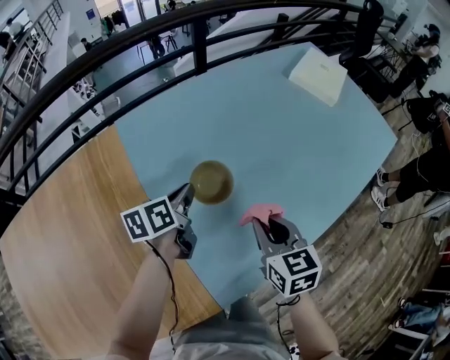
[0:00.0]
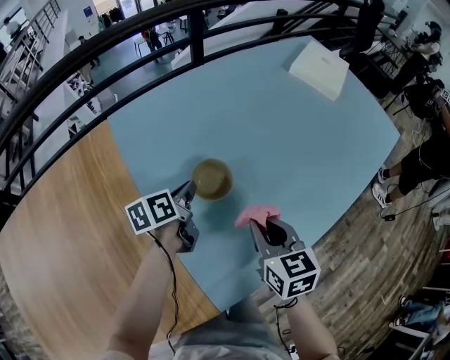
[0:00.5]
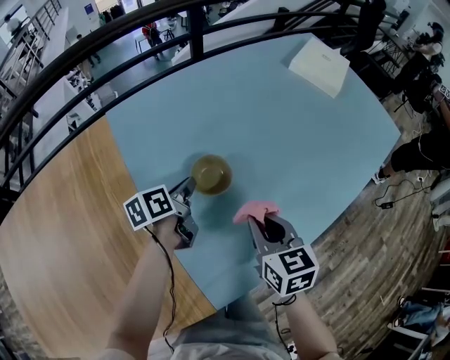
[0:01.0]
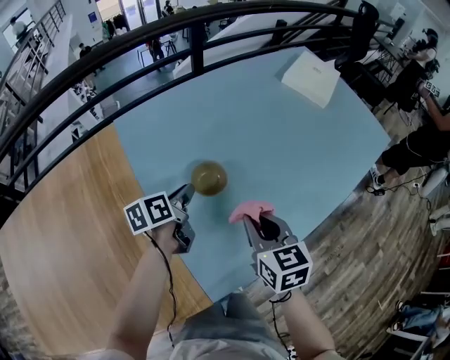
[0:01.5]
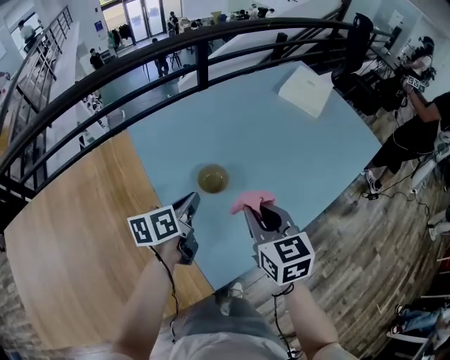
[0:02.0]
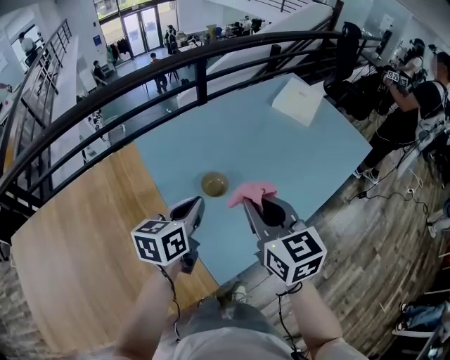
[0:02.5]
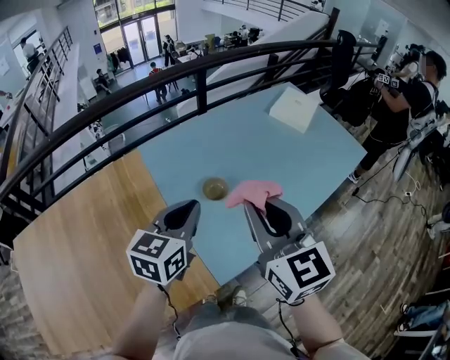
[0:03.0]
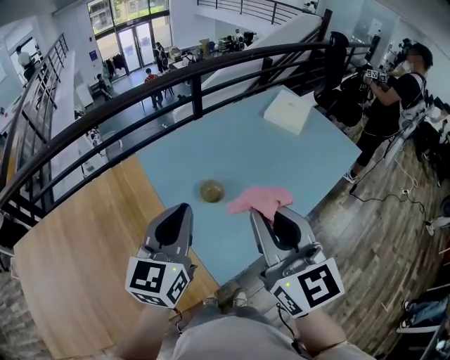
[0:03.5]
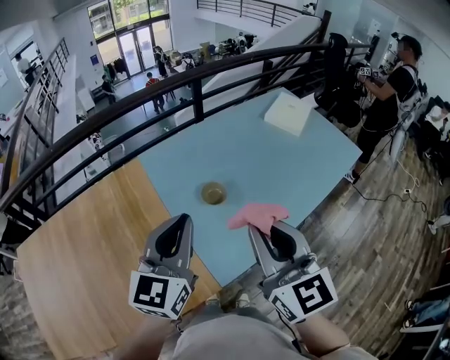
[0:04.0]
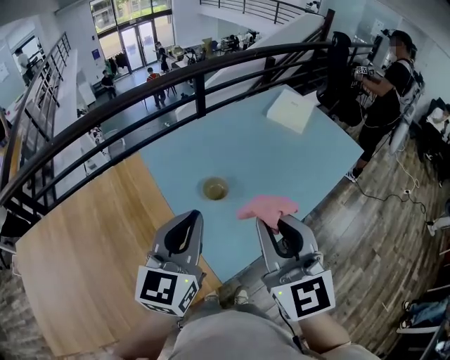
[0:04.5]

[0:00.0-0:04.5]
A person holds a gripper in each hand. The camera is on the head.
0:00.0 to 0:02.0: The grippers both shift upward and backward by roughly 15 cm.
0:02.0 to 0:04.5: The grippers both shift upward and backward by roughly 30 cm. The left gripper twists roughly 40 degrees clockwise, seen from behind, while the right gripper changes its angle by about 30 degrees.

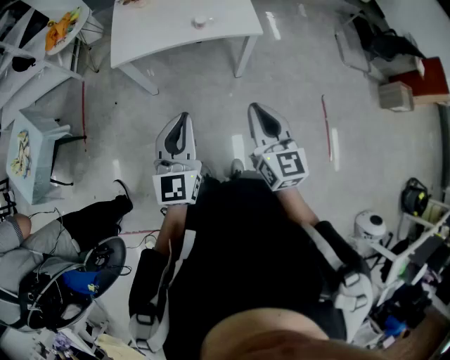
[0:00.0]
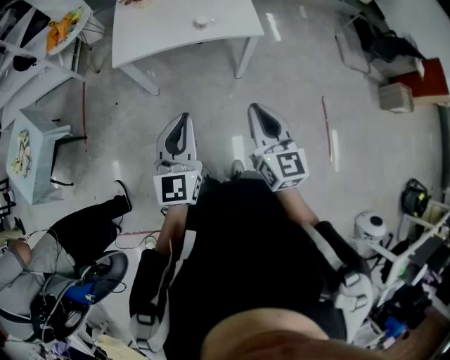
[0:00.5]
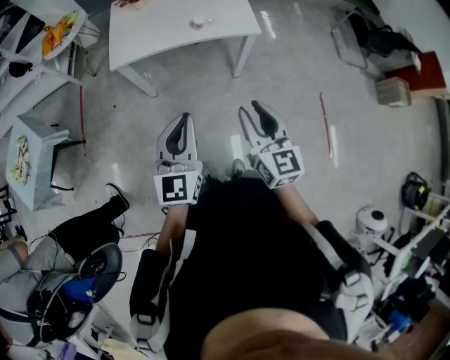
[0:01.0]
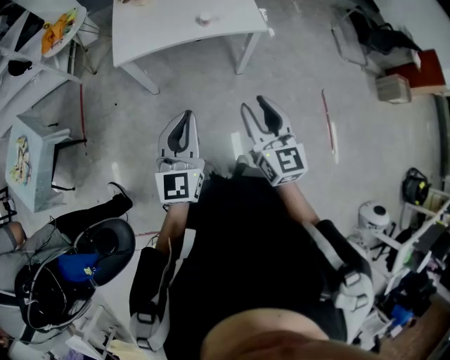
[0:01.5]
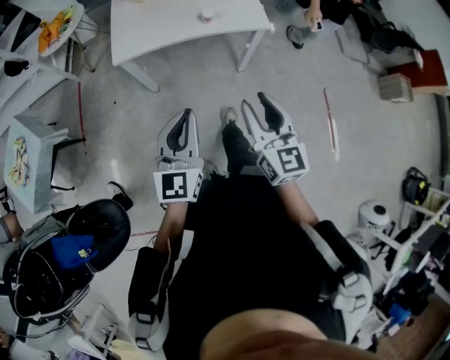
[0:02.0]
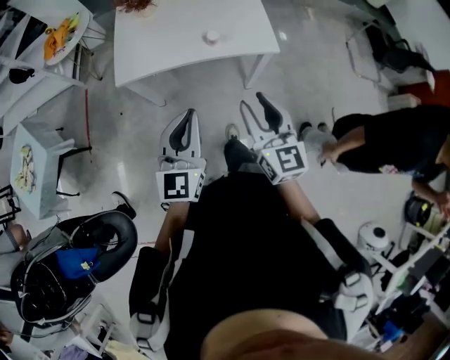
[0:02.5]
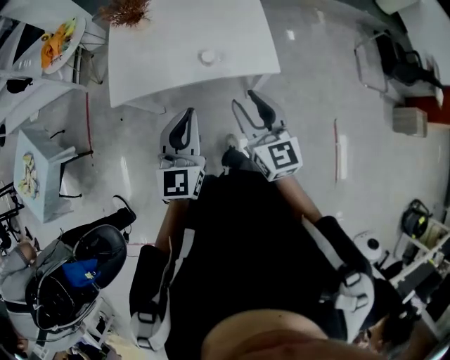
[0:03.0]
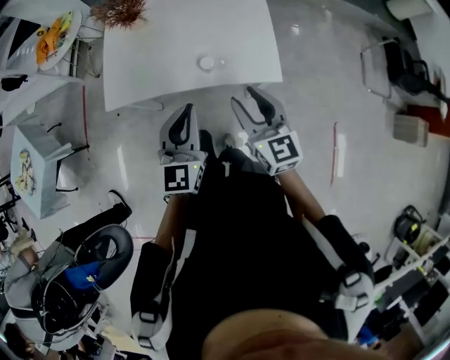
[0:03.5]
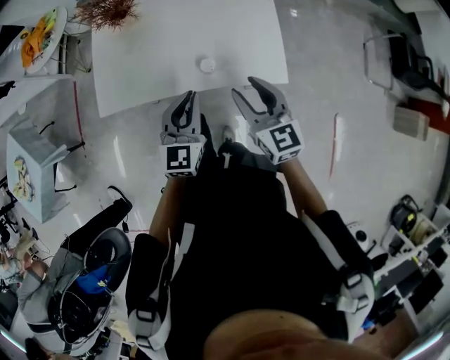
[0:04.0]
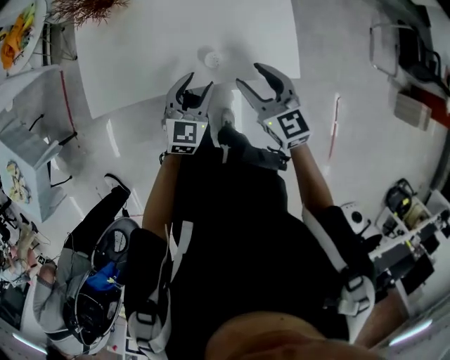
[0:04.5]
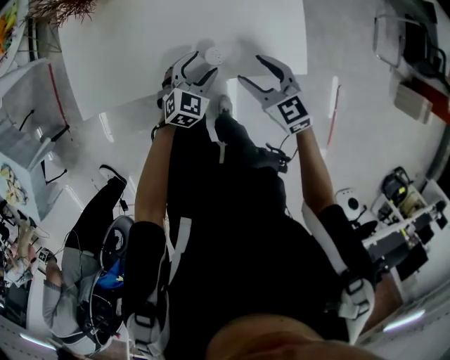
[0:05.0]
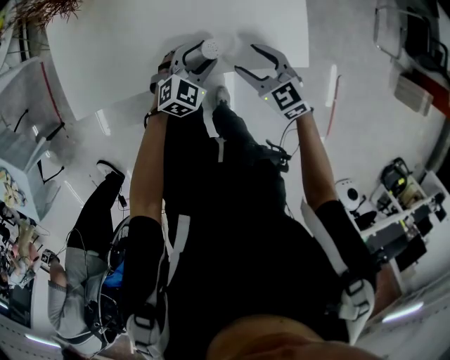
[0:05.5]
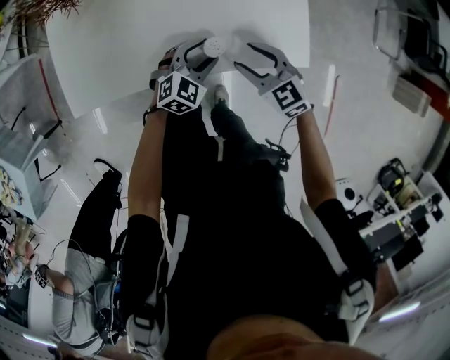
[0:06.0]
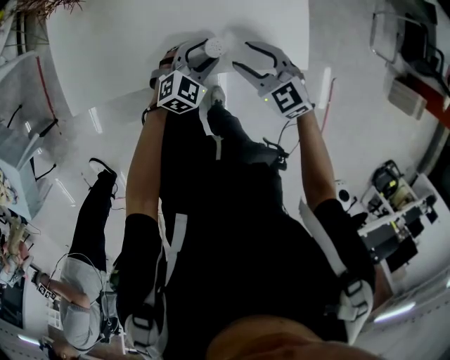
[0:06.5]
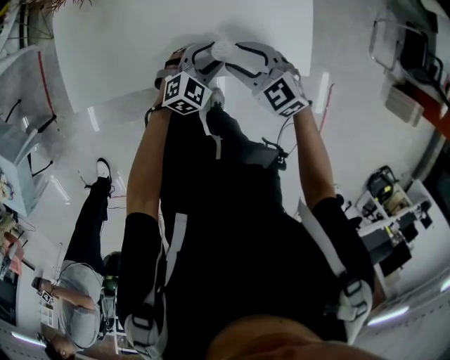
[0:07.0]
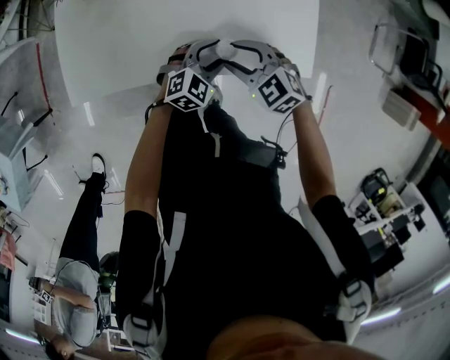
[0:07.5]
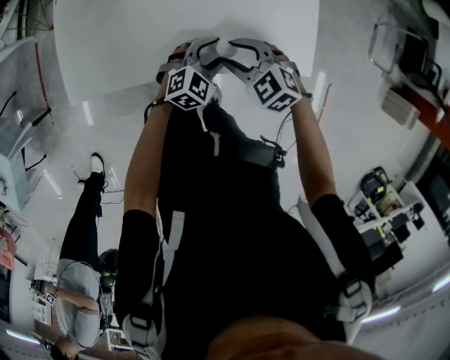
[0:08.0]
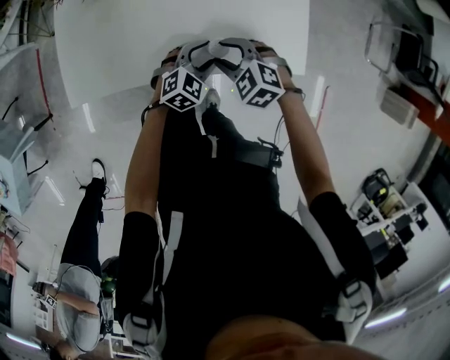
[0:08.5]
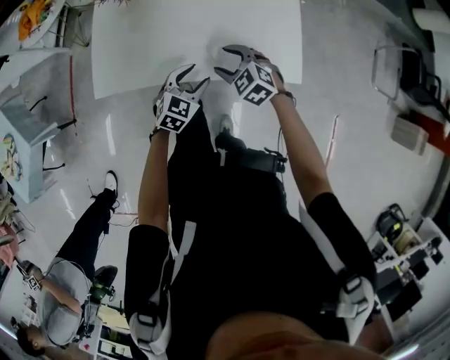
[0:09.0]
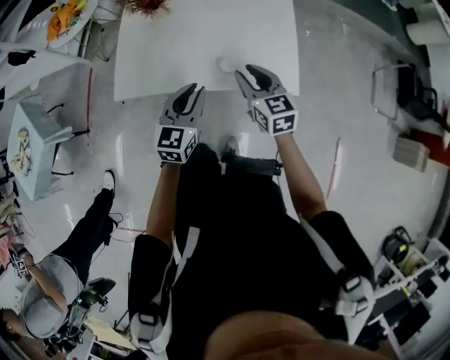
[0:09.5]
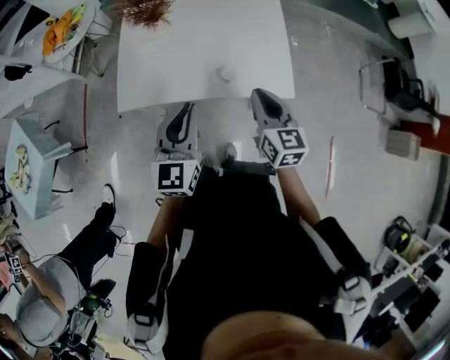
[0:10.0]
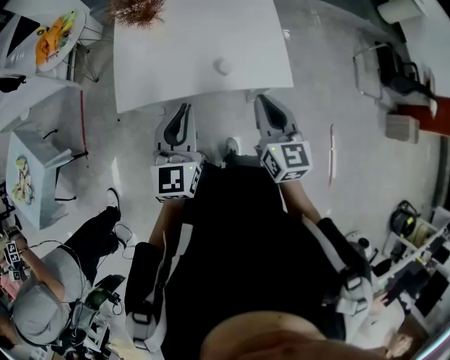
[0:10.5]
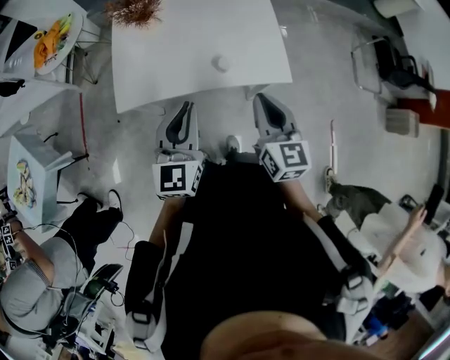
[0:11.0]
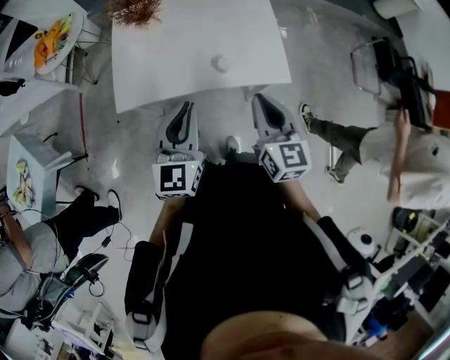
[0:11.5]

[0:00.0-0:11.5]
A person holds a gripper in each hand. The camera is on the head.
0:00.0 to 0:02.0: The two grippers go roughly 5 cm to the left. The right gripper opens up.
0:02.0 to 0:04.0: Both grippers are carried forward, some 40 cm.
0:04.0 to 0:06.0: The right gripper heads downward, covering about 20 cm, and changes its angle by about 30 degrees, while the left gripper moves downward and forward, roughly 25 cm, changes its angle by roughly 50 degrees, and opens up.
0:06.0 to 0:07.5: The right gripper moves to the left, about 5 cm.
0:07.5 to 0:09.5: The right gripper shifts approximately 15 cm upward and to the right, and swivels some 40 degrees. The left gripper heads upward and backward, covering approximately 25 cm, rotates approximately 40 degrees, and closes its fingers.
0:09.5 to 0:11.5: The right gripper moves backward and upward, approximately 20 cm, turns by approximately 20 degrees, and closes up. Meanwhile the left gripper goes approximately 15 cm upward, backward and to the left.

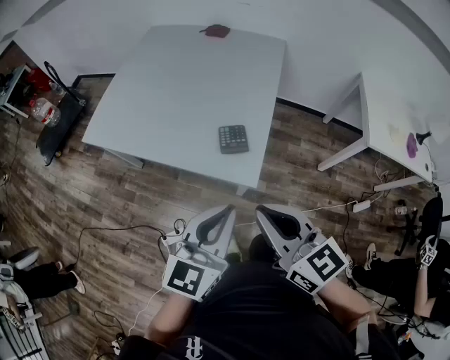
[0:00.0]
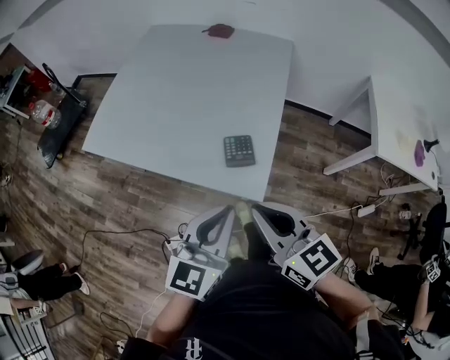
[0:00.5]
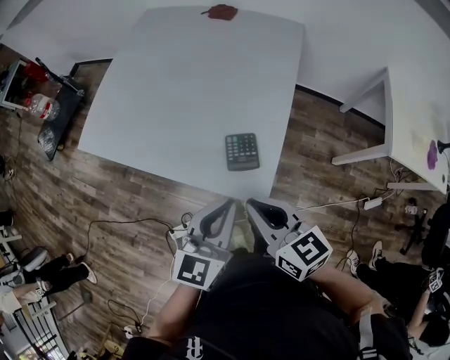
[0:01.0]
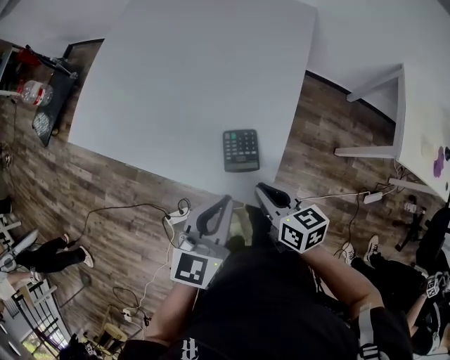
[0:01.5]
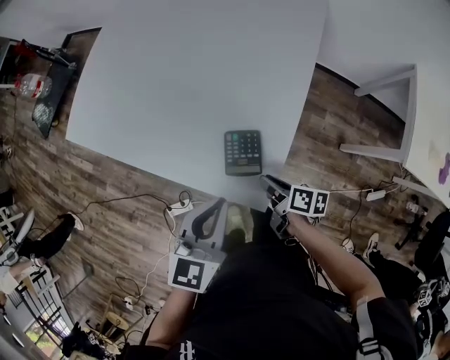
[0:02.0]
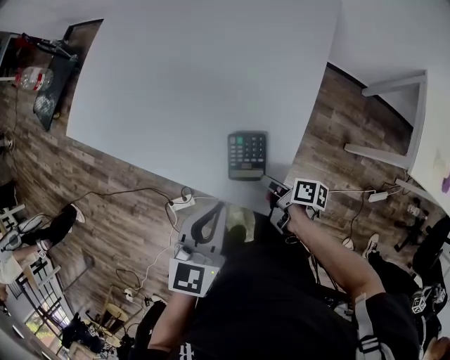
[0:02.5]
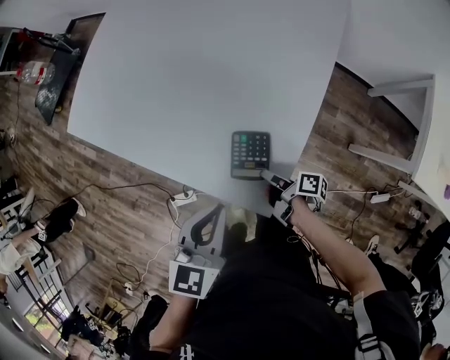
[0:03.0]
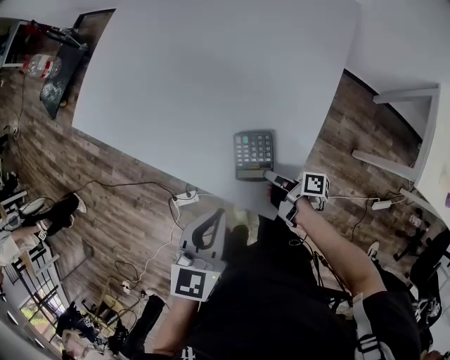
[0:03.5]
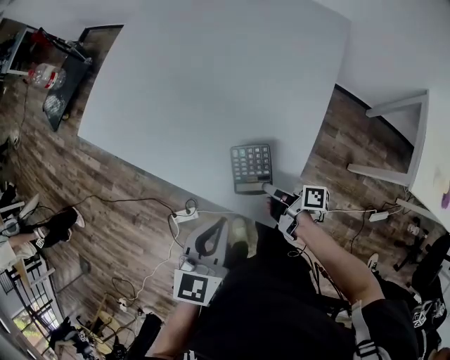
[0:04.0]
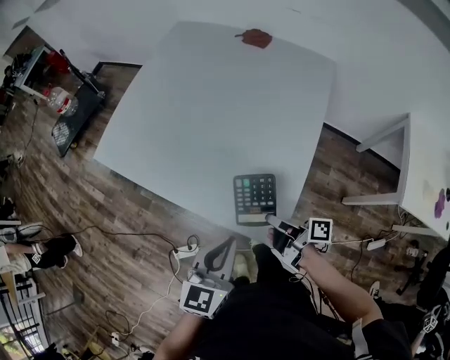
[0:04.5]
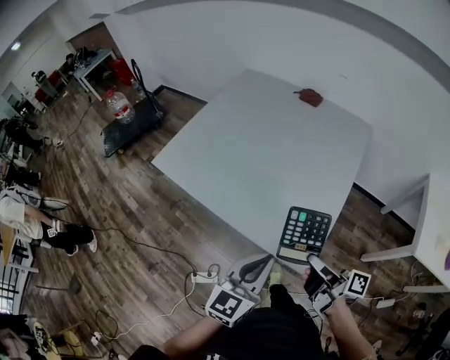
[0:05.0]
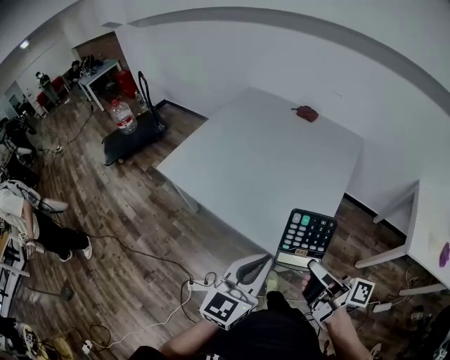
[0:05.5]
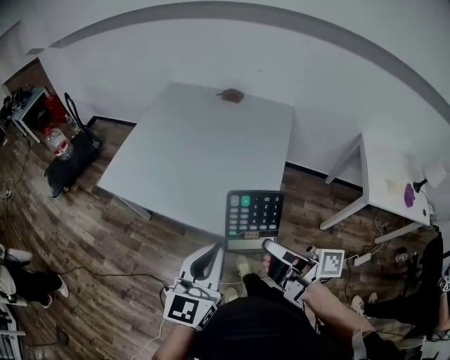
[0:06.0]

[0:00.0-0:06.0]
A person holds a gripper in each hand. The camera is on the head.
0:00.0 to 0:02.0: The left gripper moves roughly 20 cm.
0:04.0 to 0:06.0: The left gripper is displaced upward by some 15 cm, and rotates about 30 degrees.

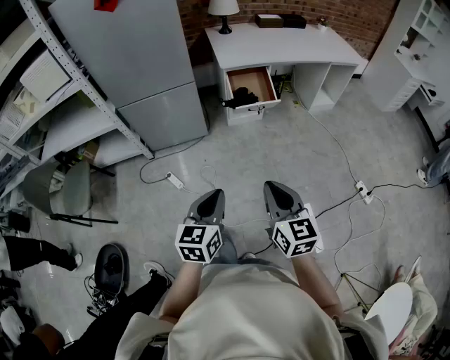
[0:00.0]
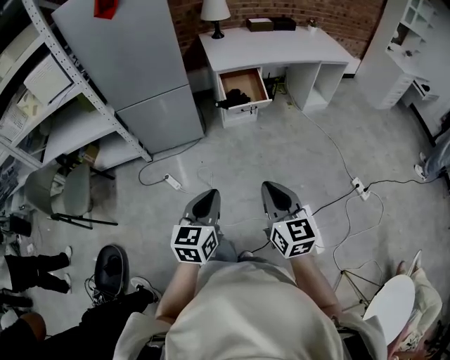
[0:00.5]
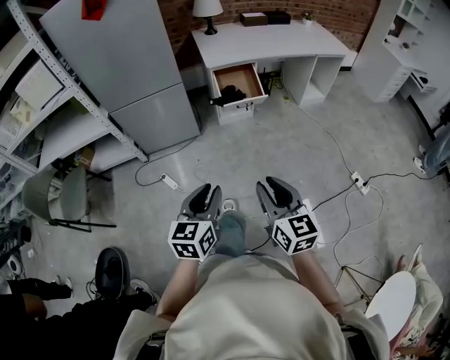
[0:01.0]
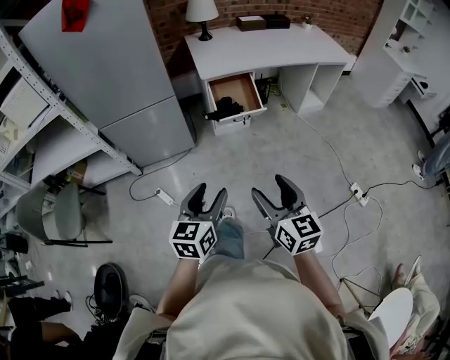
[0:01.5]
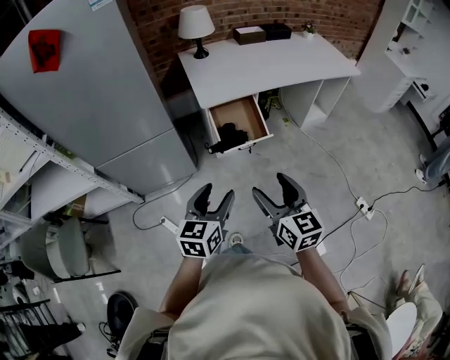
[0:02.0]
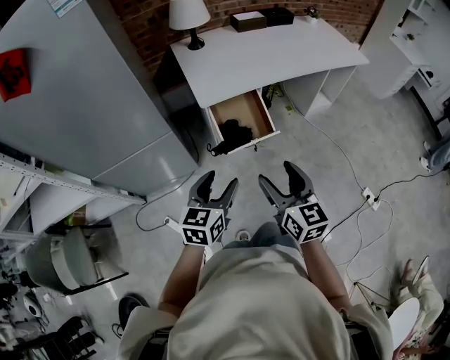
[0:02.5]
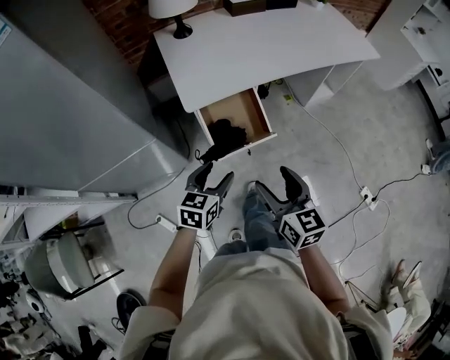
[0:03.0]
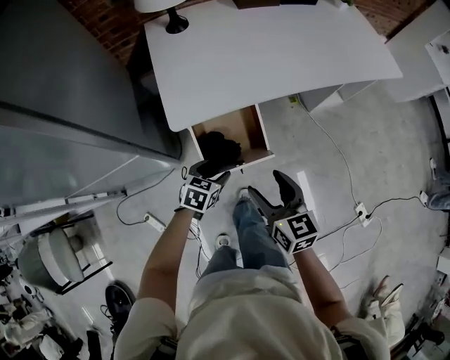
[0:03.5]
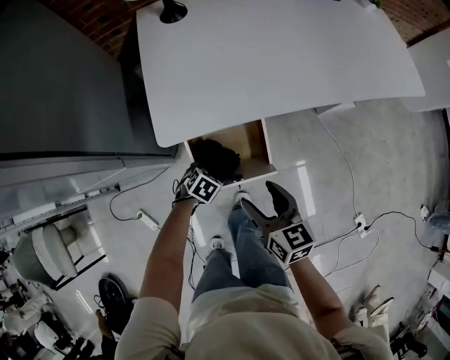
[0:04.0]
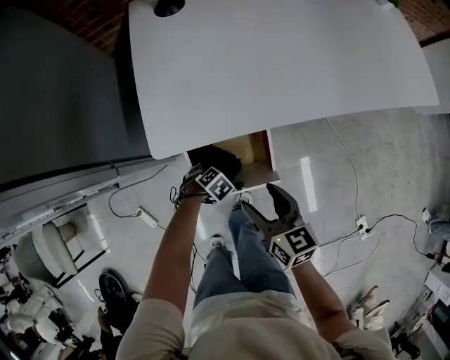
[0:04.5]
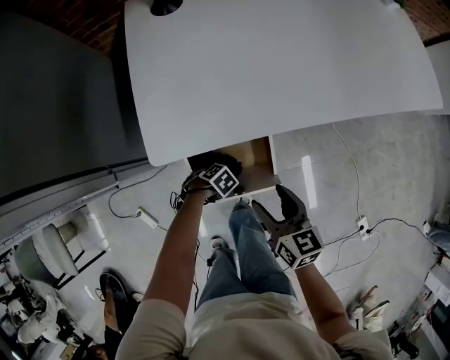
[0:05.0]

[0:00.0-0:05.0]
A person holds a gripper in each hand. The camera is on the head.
0:00.0 to 0:02.5: The two grippers go some 40 cm forward. The right gripper opens. The left gripper opens up.
0:02.5 to 0:05.0: The right gripper changes place by roughly 40 cm, and changes its angle by approximately 30 degrees; the left gripper travels downward by some 50 cm, and tilts its fingers approximately 60 degrees downward.
